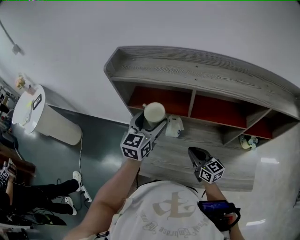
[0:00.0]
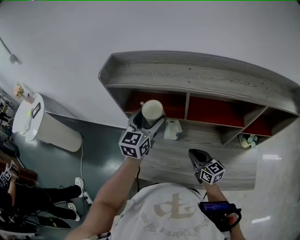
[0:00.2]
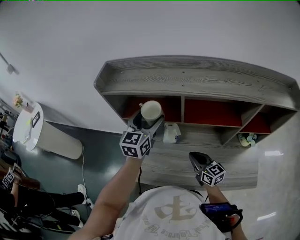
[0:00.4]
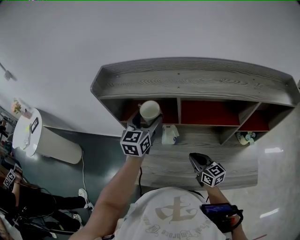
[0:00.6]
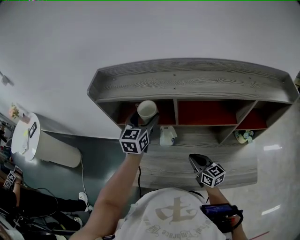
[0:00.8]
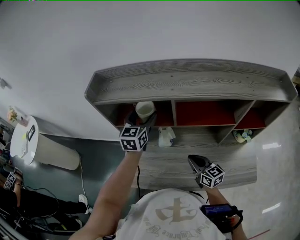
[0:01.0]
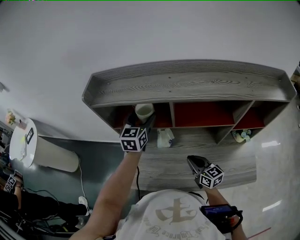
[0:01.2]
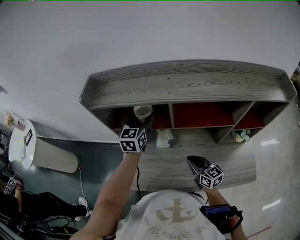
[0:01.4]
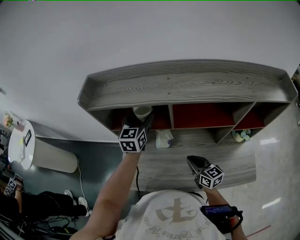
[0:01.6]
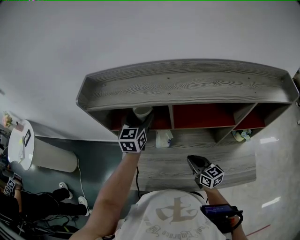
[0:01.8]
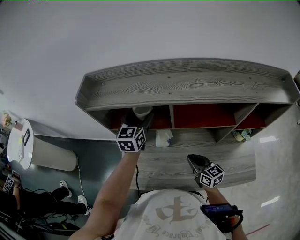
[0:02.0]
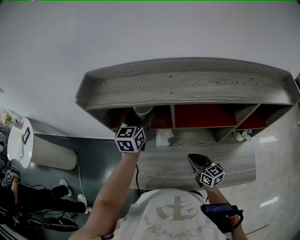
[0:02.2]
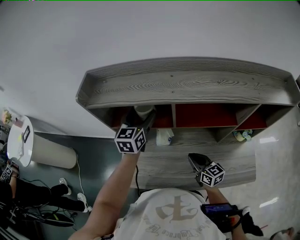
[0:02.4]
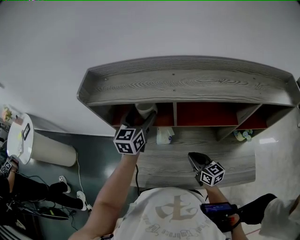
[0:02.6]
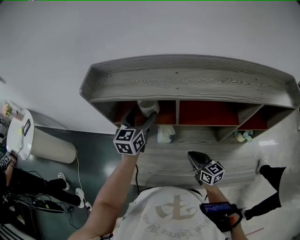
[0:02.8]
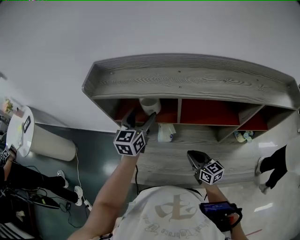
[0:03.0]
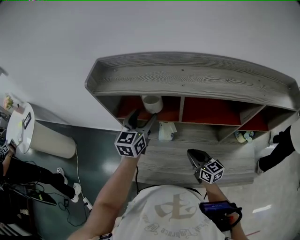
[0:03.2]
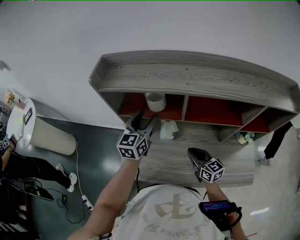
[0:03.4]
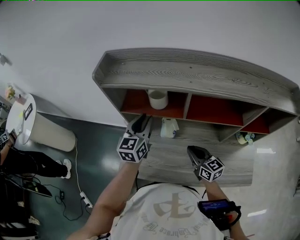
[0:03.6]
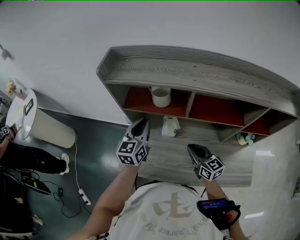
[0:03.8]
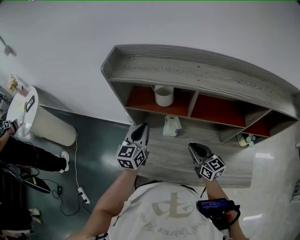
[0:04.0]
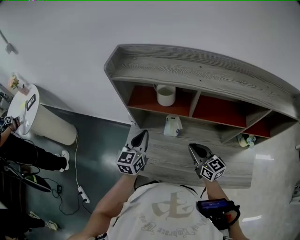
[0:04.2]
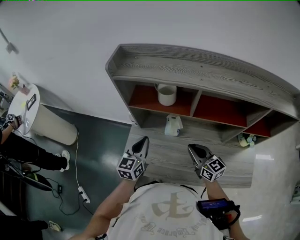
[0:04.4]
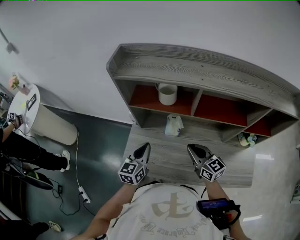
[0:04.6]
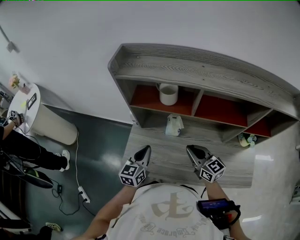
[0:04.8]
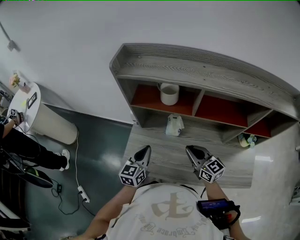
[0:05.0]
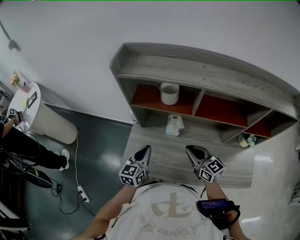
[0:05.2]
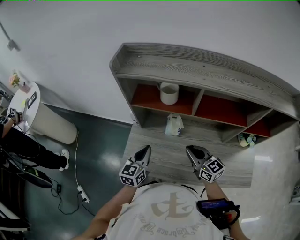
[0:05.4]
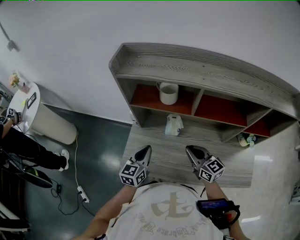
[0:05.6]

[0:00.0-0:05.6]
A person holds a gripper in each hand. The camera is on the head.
0:00.0 to 0:01.4: The left gripper shifts approximately 10 cm forward.
0:01.4 to 0:02.8: The grippers move only a little.
0:02.8 to 0:04.2: The right gripper shifts by some 5 cm. The left gripper shifts some 15 cm backward, to the left and downward, and closes up.
0:04.2 to 0:05.6: The left gripper goes about 10 cm backward and downward.

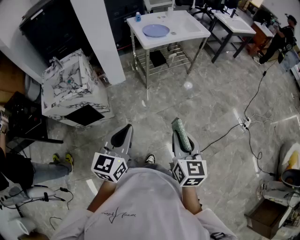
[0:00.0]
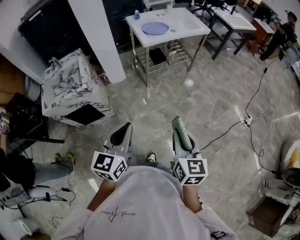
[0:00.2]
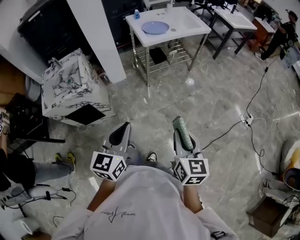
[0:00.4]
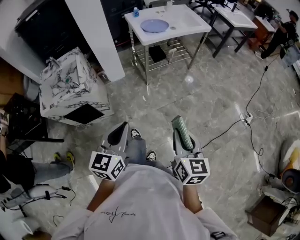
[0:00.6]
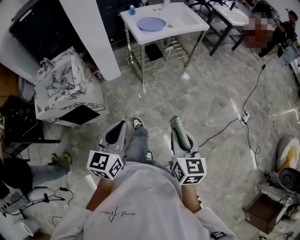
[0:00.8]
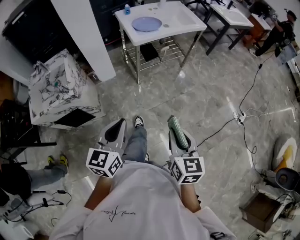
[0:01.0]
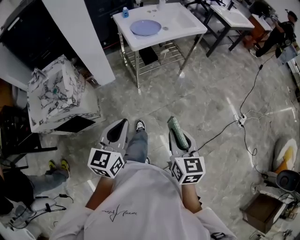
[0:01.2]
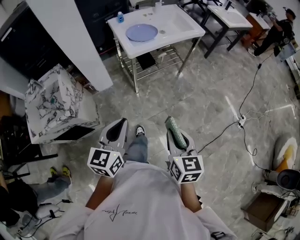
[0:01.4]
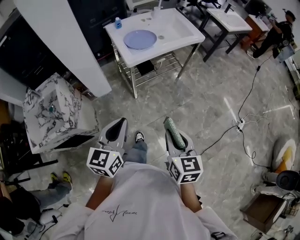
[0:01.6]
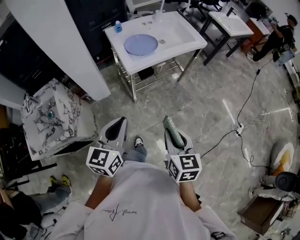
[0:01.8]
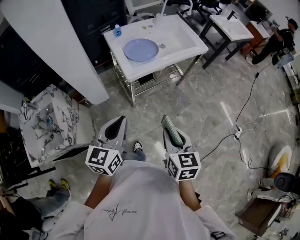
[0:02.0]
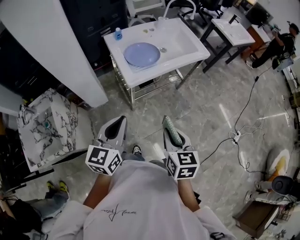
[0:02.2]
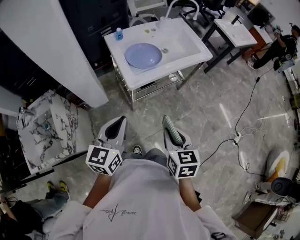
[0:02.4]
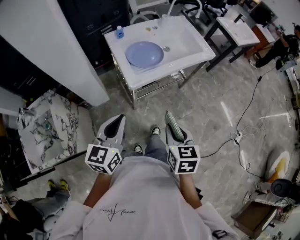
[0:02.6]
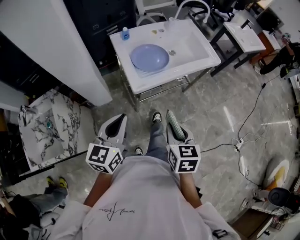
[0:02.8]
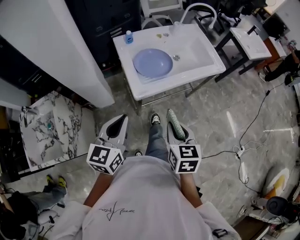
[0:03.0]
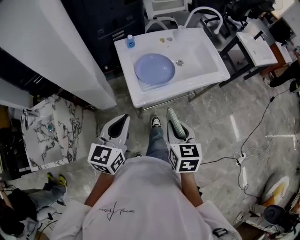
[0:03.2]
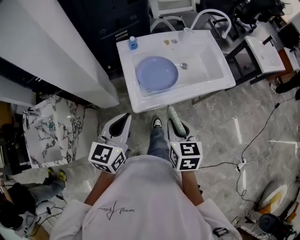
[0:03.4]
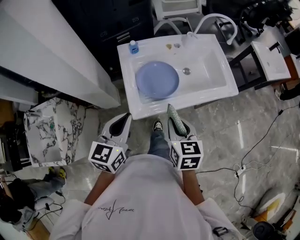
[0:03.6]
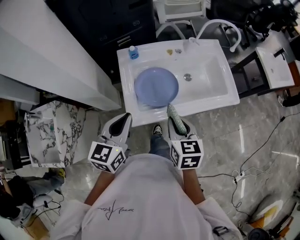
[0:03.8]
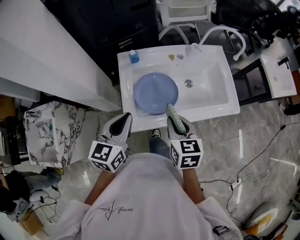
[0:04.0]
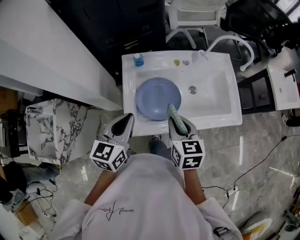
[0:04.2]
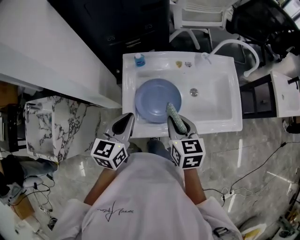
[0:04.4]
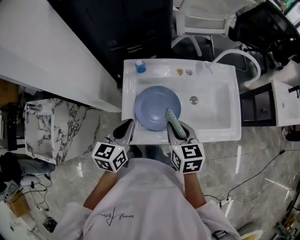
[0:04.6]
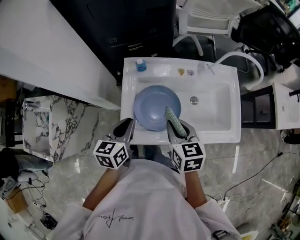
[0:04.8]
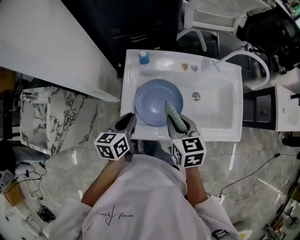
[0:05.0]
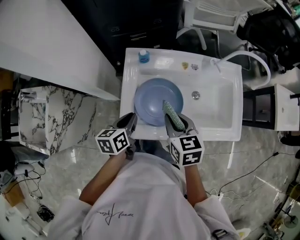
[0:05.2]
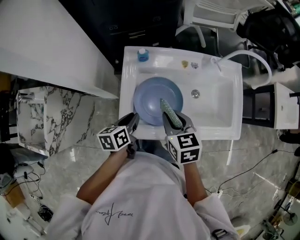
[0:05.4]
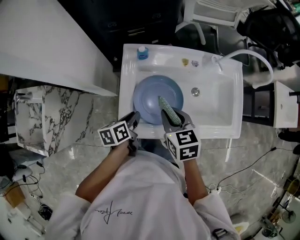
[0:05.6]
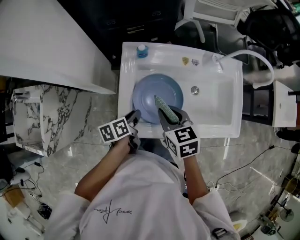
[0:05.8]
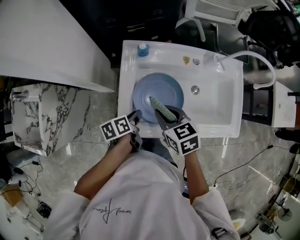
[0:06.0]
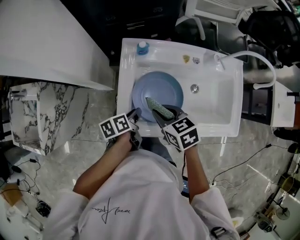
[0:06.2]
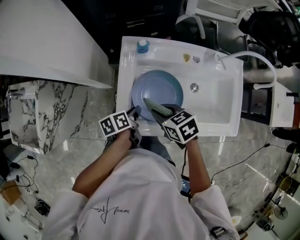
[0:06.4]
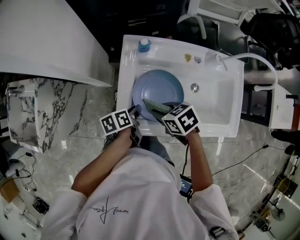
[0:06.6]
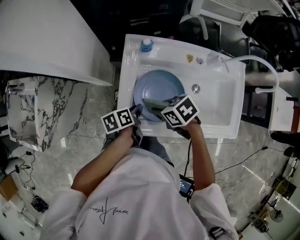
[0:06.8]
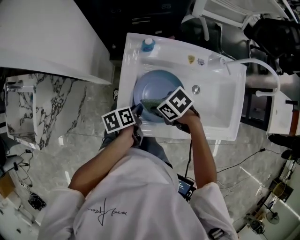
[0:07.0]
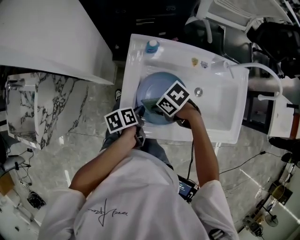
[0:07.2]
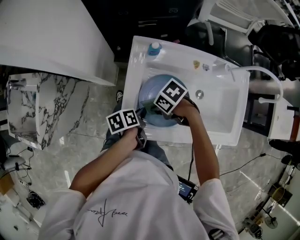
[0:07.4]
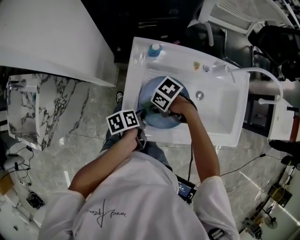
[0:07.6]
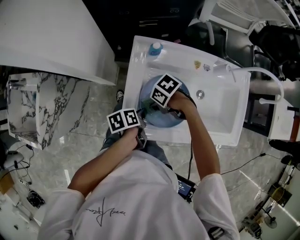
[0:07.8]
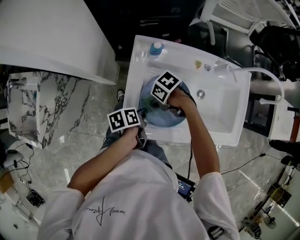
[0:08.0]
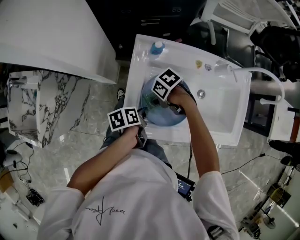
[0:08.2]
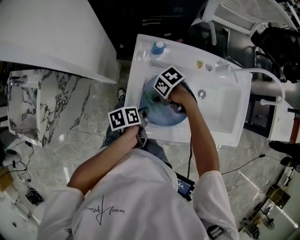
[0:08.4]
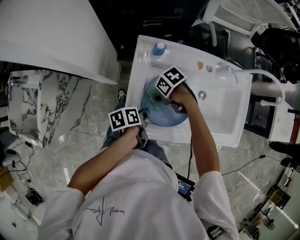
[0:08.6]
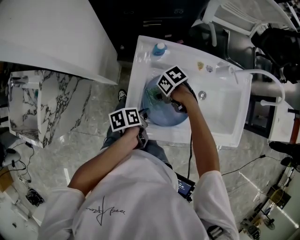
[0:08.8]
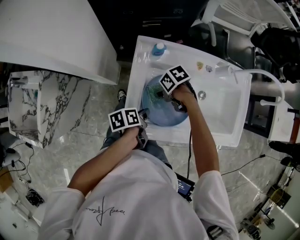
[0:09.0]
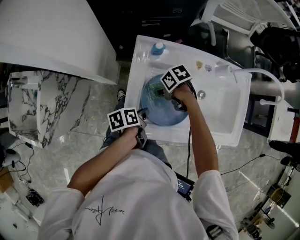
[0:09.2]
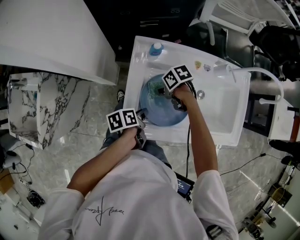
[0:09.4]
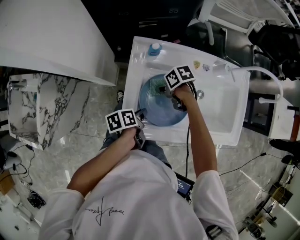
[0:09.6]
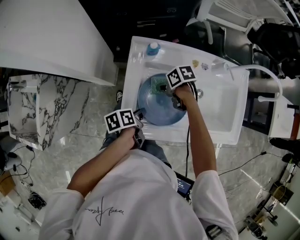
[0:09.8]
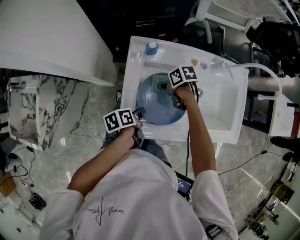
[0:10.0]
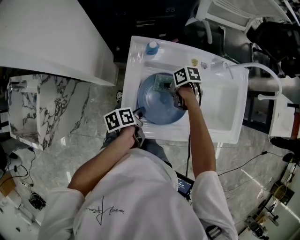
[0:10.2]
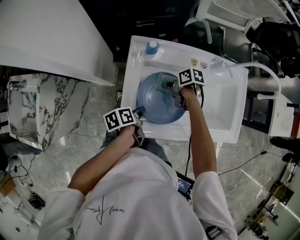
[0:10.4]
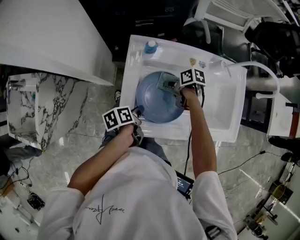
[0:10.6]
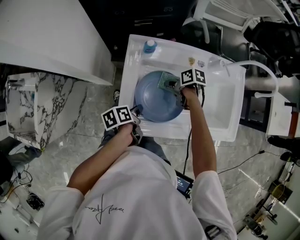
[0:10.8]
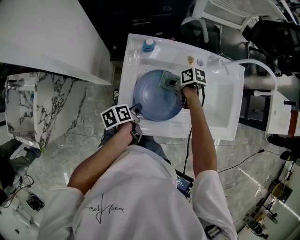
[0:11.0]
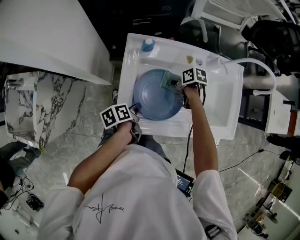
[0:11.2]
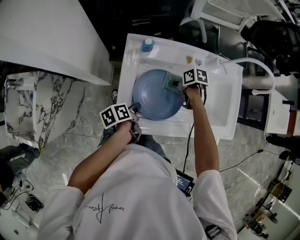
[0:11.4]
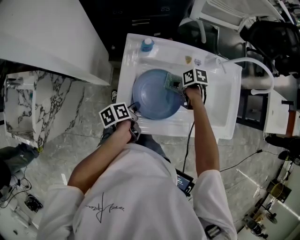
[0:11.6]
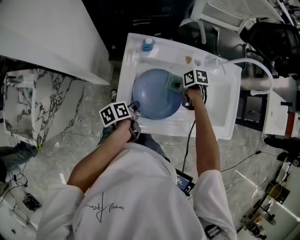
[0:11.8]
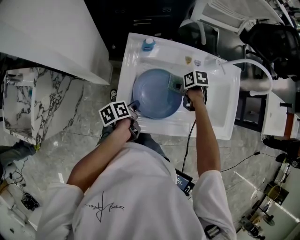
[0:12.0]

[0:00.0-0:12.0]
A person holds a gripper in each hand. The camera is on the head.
0:00.0 to 0:01.6: Both grippers move forward, about 25 cm.
0:01.6 to 0:03.0: Both grippers move forward, some 25 cm.
0:03.0 to 0:04.4: The two grippers go roughly 30 cm forward. The right gripper rotates approximately 30 degrees; the left gripper rotates some 20 degrees.
0:04.4 to 0:06.0: The left gripper heads downward, covering some 20 cm, and twists approximately 50 degrees counterclockwise, seen from behind. The right gripper shifts roughly 10 cm downward and to the left, and turns by roughly 30 degrees.
0:06.0 to 0:07.6: The right gripper moves downward, approximately 10 cm, and swivels about 60 degrees.
0:07.6 to 0:09.0: The right gripper ends up approximately 5 cm from where it was.
0:09.0 to 0:10.4: The right gripper ends up approximately 10 cm from where it was, and changes its angle by some 40 degrees.
0:10.4 to 0:12.0: The right gripper goes about 10 cm to the right, and swivels some 20 degrees.

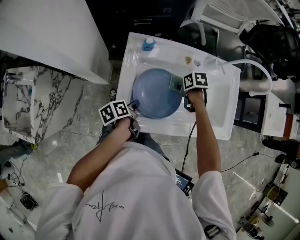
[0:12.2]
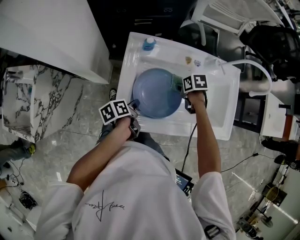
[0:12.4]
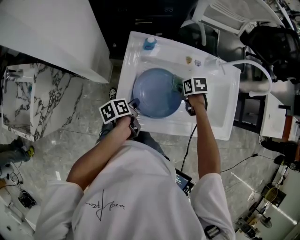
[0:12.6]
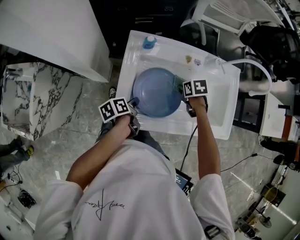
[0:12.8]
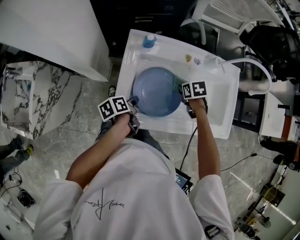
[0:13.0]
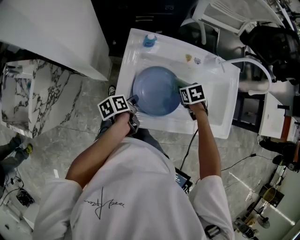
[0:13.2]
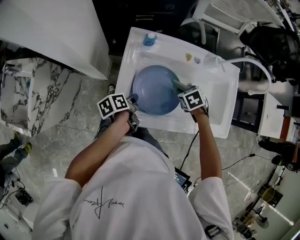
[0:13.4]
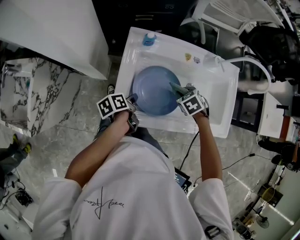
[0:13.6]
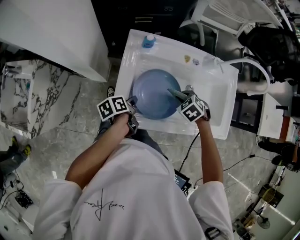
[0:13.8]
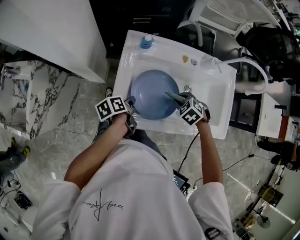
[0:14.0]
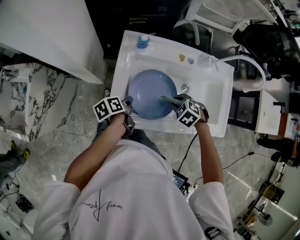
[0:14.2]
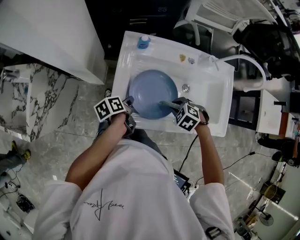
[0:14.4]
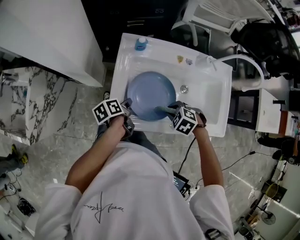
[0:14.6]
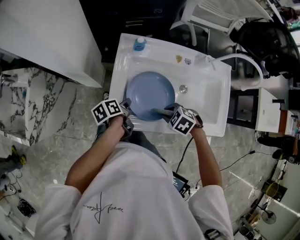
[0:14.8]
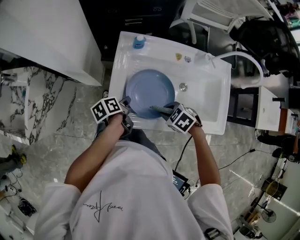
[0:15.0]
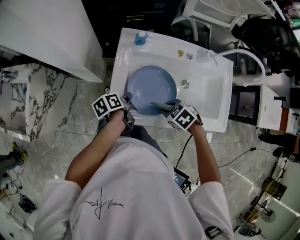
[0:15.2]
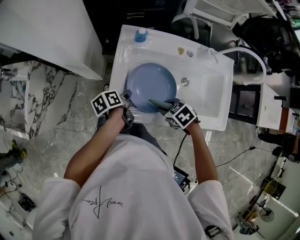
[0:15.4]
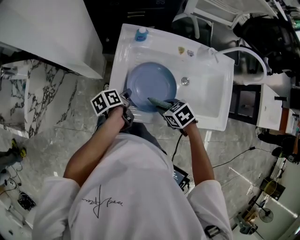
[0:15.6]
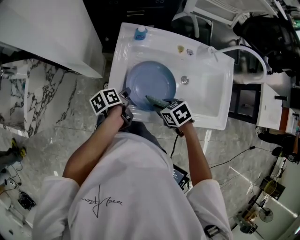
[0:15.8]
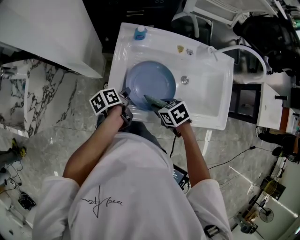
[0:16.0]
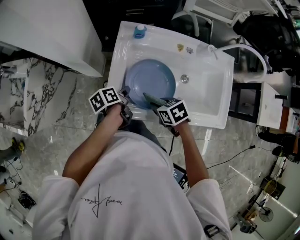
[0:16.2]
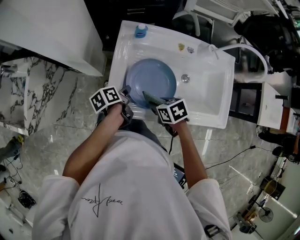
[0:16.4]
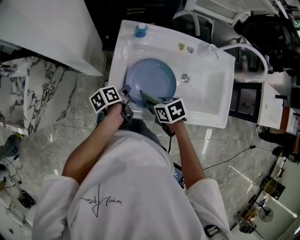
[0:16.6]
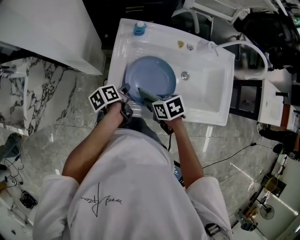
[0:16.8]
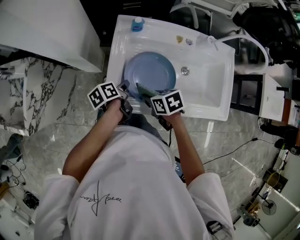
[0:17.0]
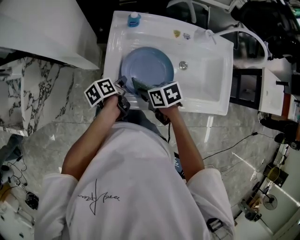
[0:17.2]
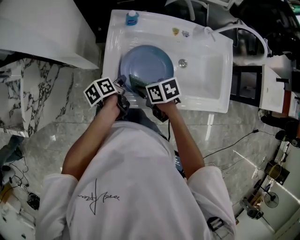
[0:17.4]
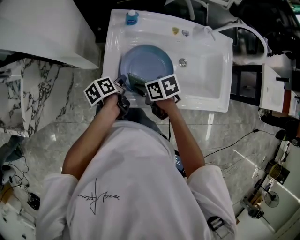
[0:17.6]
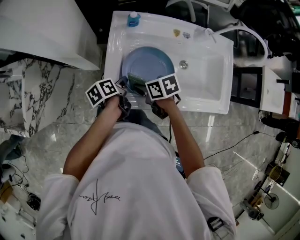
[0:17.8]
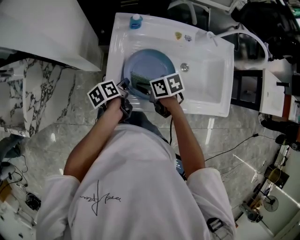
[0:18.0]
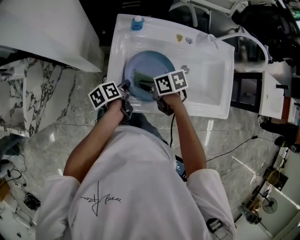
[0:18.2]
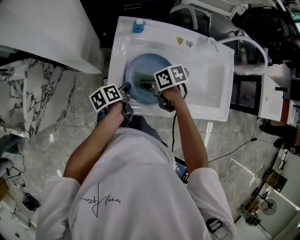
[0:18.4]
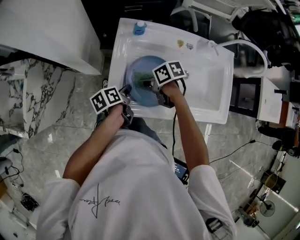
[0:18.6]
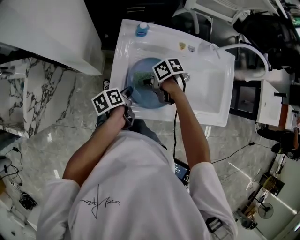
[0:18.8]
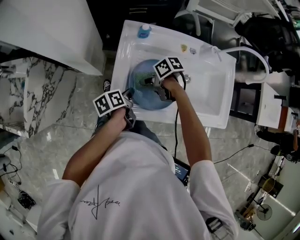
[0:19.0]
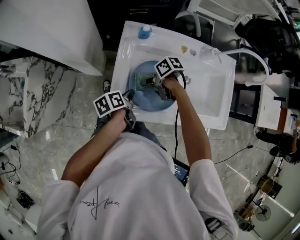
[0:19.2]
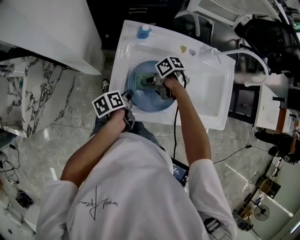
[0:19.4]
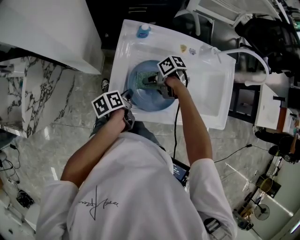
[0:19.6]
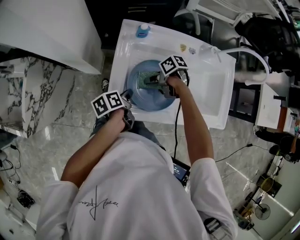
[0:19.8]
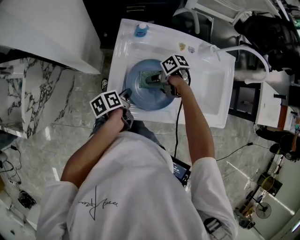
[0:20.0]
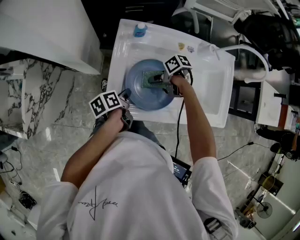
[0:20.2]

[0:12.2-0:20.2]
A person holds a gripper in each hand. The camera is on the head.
0:12.2 to 0:13.8: The right gripper heads backward, covering approximately 10 cm, and twists some 50 degrees counterclockwise, seen from behind.
0:13.8 to 0:15.4: The right gripper shifts by approximately 10 cm, and rotates approximately 20 degrees.
0:15.4 to 0:17.0: The right gripper goes approximately 5 cm to the left, and changes its angle by approximately 30 degrees.
0:17.0 to 0:18.6: The right gripper shifts about 10 cm forward.
0:18.6 to 0:20.2: The right gripper ends up some 5 cm from where it was.
